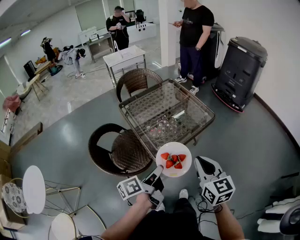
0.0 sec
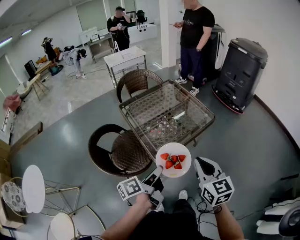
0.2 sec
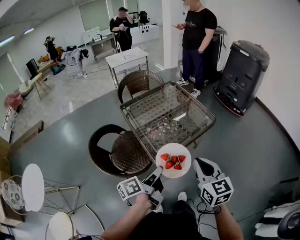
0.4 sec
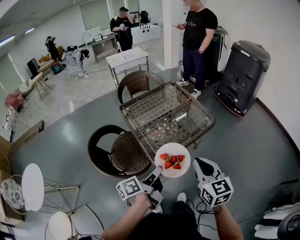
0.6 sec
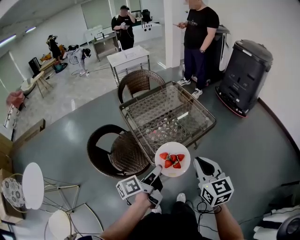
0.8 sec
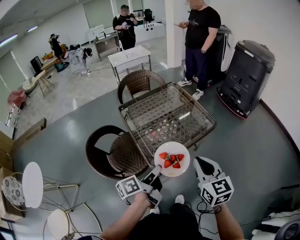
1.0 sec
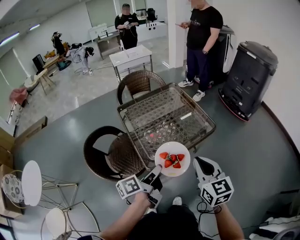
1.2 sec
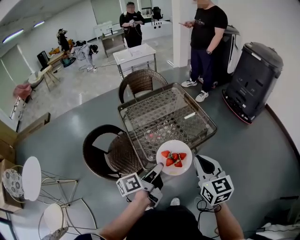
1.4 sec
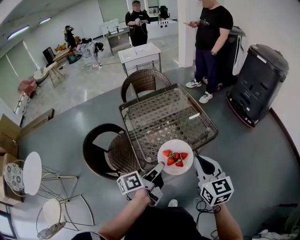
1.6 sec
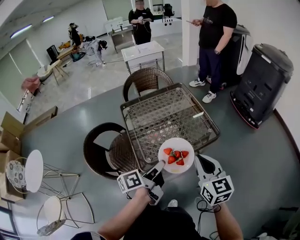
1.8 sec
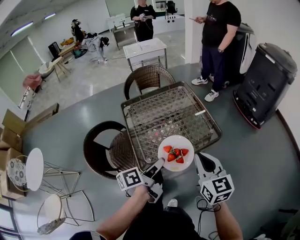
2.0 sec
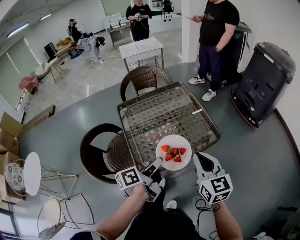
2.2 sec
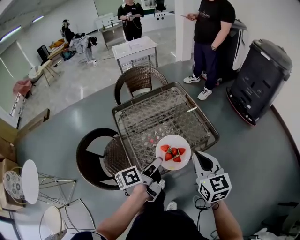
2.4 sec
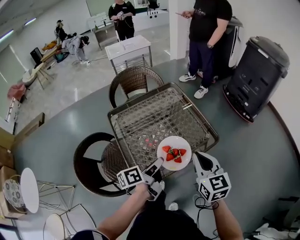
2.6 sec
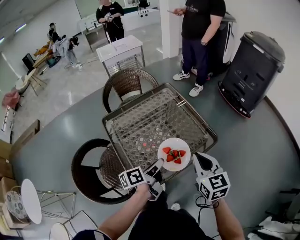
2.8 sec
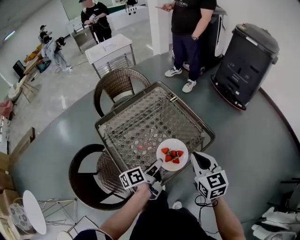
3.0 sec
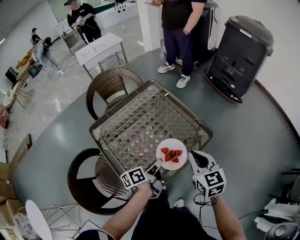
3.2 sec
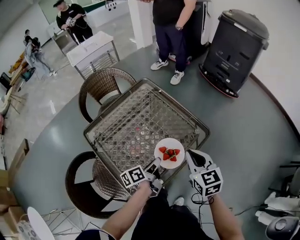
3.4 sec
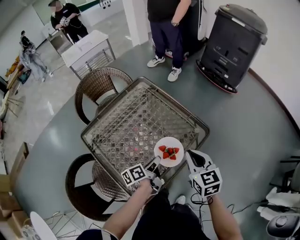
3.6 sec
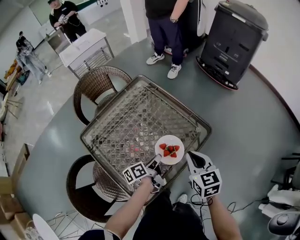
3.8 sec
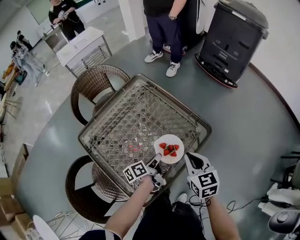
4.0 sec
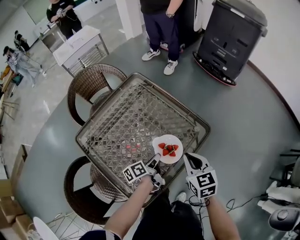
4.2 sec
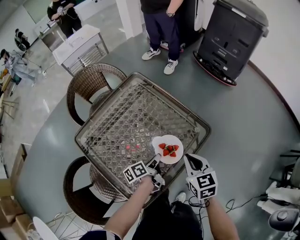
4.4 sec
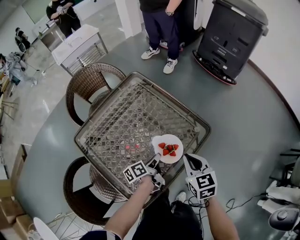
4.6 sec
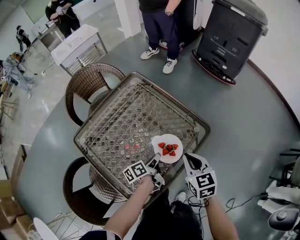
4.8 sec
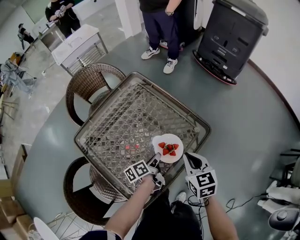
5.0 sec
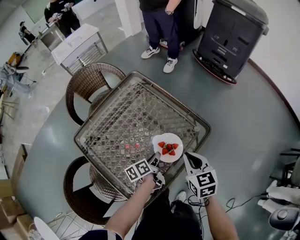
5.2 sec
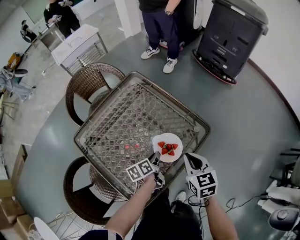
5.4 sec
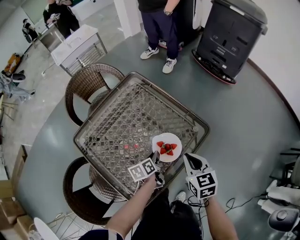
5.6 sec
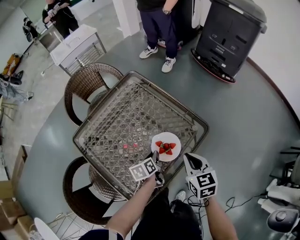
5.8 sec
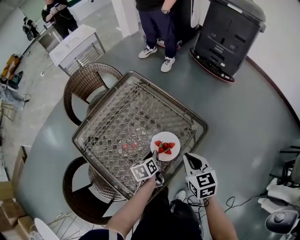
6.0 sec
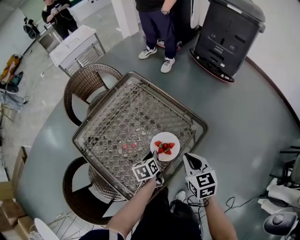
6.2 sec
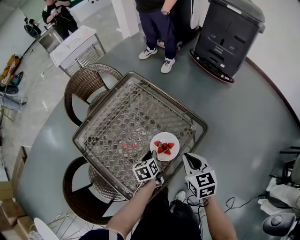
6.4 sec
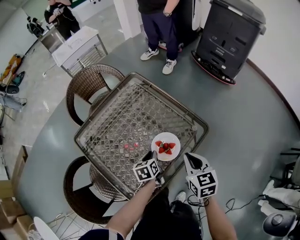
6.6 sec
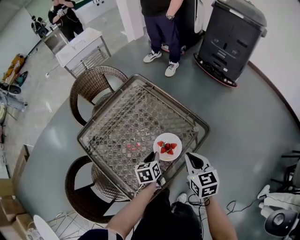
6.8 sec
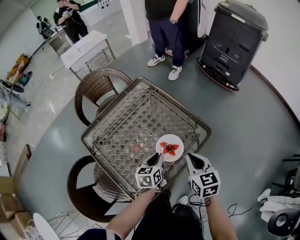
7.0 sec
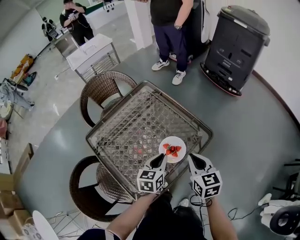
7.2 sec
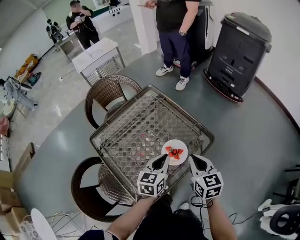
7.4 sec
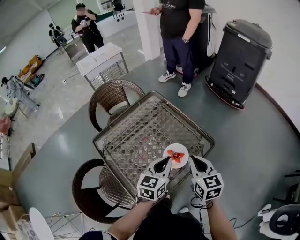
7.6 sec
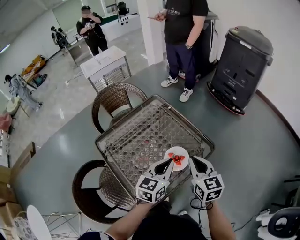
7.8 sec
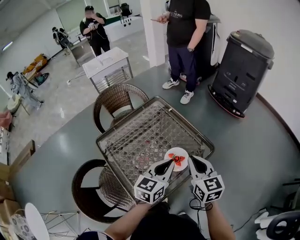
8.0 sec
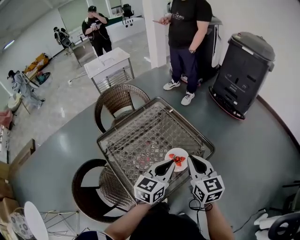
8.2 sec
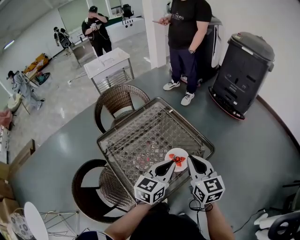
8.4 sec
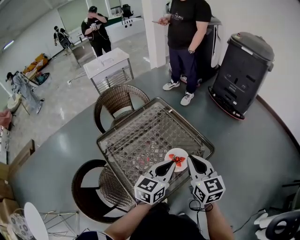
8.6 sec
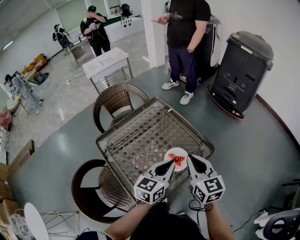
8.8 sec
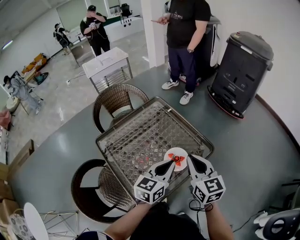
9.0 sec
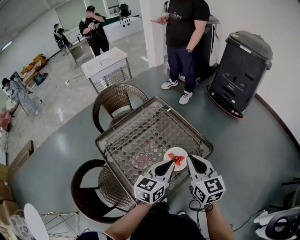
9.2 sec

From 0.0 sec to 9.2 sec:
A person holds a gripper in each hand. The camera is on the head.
From 0.0 sec to 1.6 sec: The two grippers go roughly 15 cm forward and to the right.
From 1.6 sec to 3.0 sec: Both grippers travel together forward and downward, some 20 cm.
From 3.0 sec to 4.6 sec: The right gripper shifts some 10 cm downward, while the left gripper shifts about 15 cm downward and forward.
From 4.6 sec to 6.2 sec: The left gripper swivels some 40 degrees.
From 6.2 sec to 7.6 sec: The right gripper travels upward by about 10 cm. The left gripper goes approximately 20 cm upward, and rotates roughly 40 degrees.
From 7.6 sec to 9.2 sec: The left gripper changes place by some 5 cm; the right gripper goes some 5 cm upward.

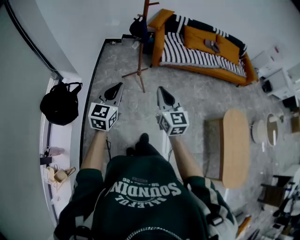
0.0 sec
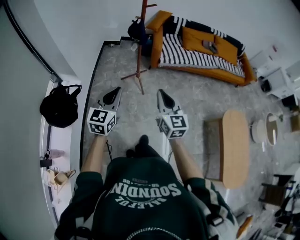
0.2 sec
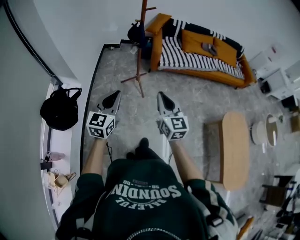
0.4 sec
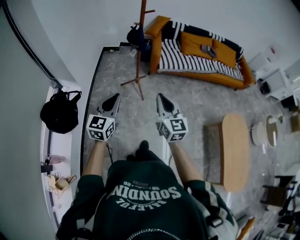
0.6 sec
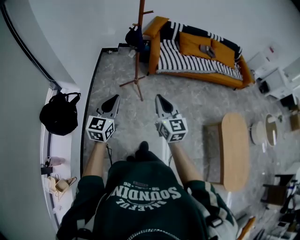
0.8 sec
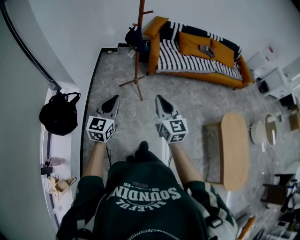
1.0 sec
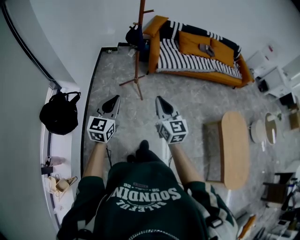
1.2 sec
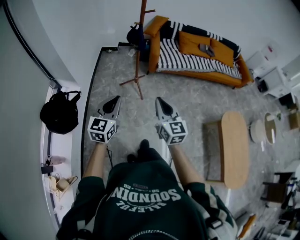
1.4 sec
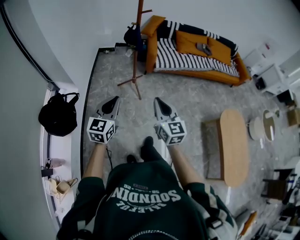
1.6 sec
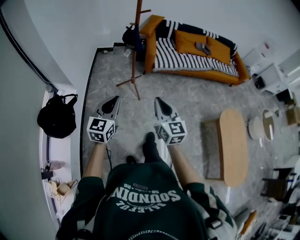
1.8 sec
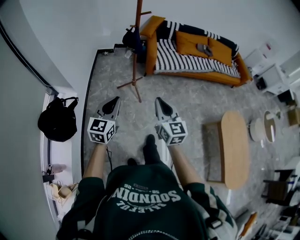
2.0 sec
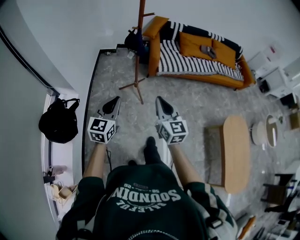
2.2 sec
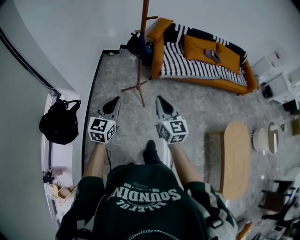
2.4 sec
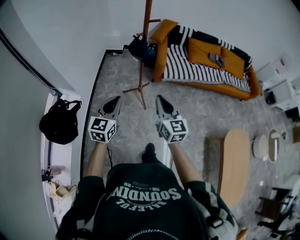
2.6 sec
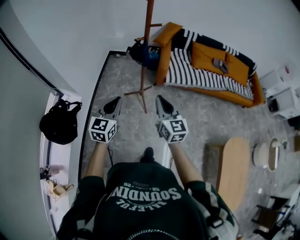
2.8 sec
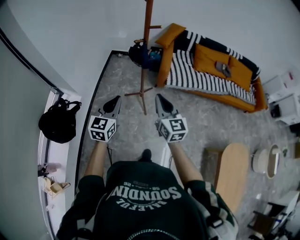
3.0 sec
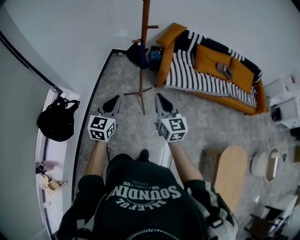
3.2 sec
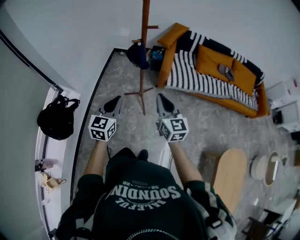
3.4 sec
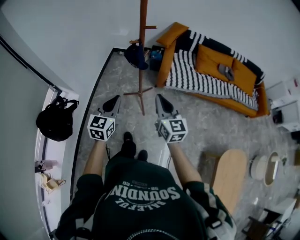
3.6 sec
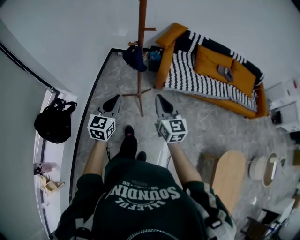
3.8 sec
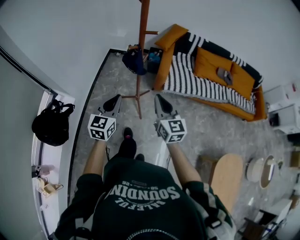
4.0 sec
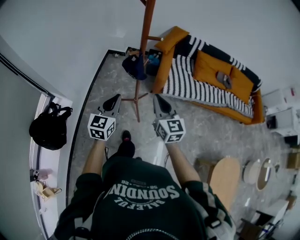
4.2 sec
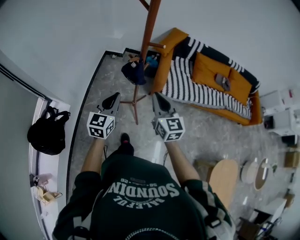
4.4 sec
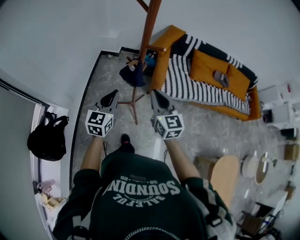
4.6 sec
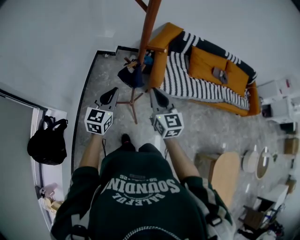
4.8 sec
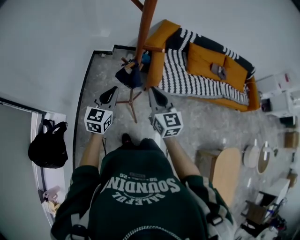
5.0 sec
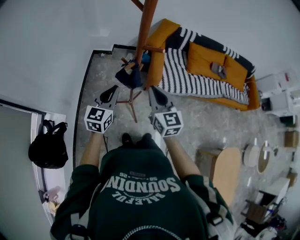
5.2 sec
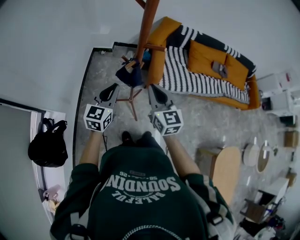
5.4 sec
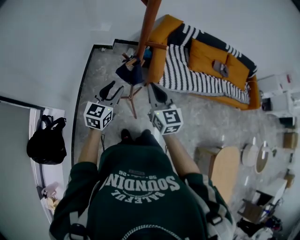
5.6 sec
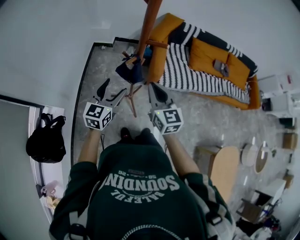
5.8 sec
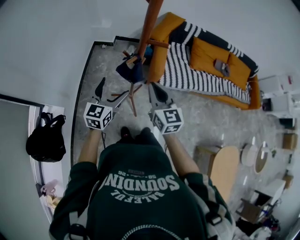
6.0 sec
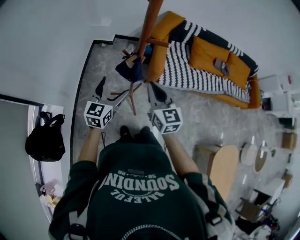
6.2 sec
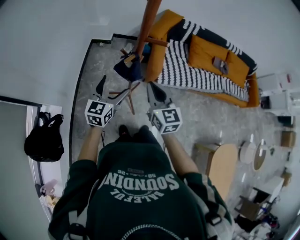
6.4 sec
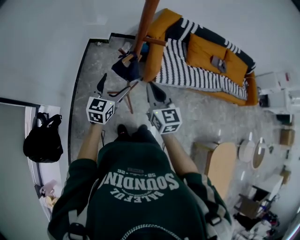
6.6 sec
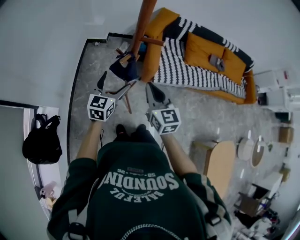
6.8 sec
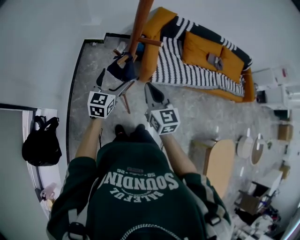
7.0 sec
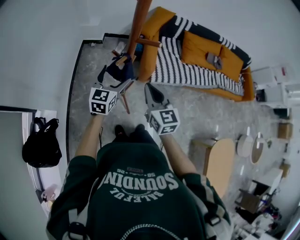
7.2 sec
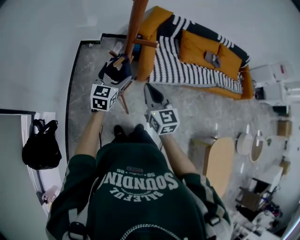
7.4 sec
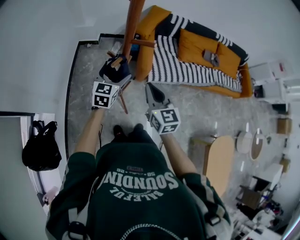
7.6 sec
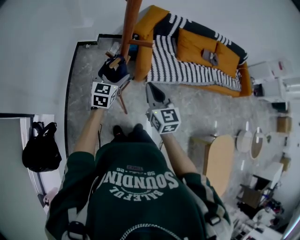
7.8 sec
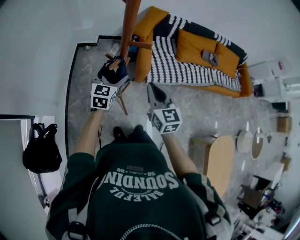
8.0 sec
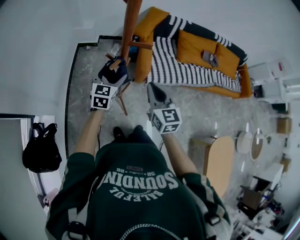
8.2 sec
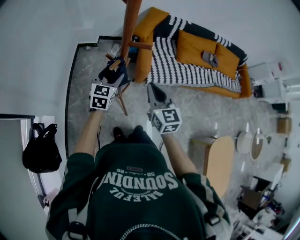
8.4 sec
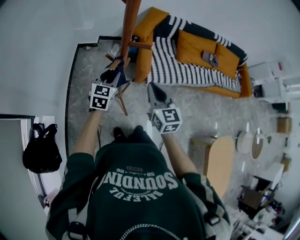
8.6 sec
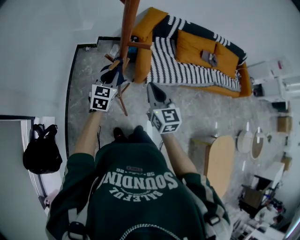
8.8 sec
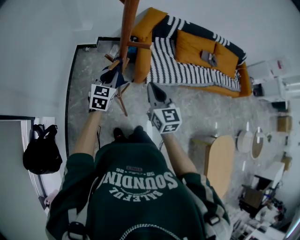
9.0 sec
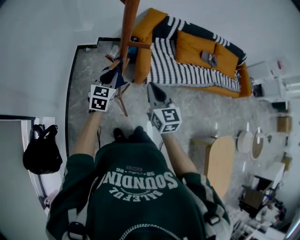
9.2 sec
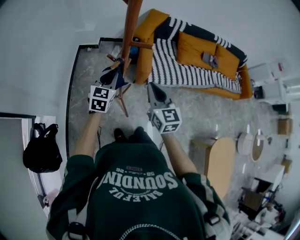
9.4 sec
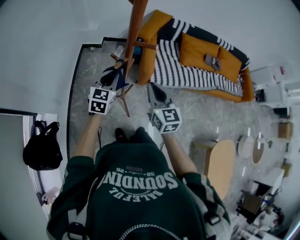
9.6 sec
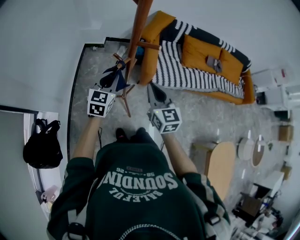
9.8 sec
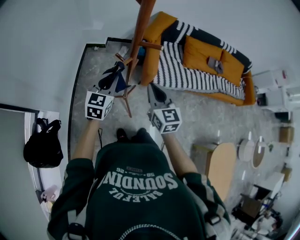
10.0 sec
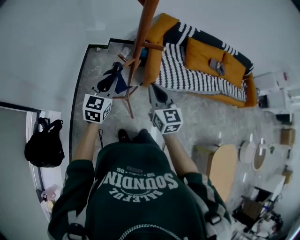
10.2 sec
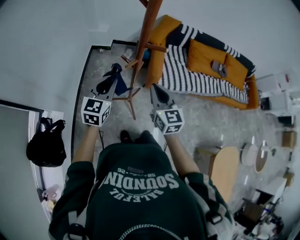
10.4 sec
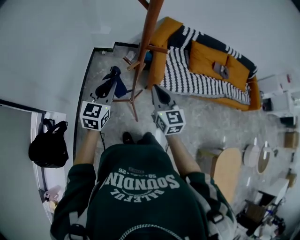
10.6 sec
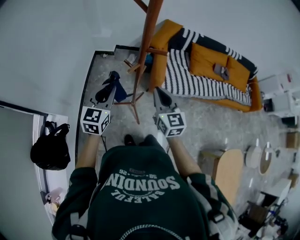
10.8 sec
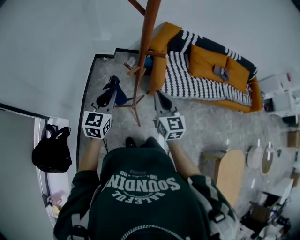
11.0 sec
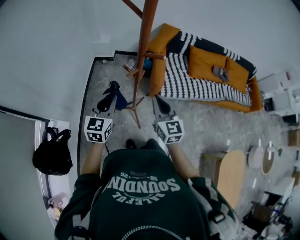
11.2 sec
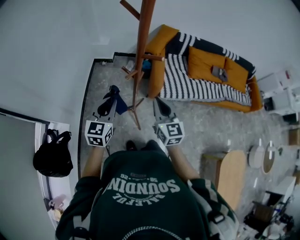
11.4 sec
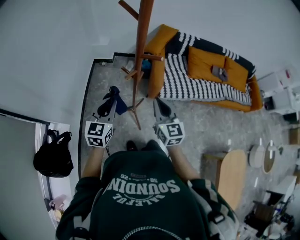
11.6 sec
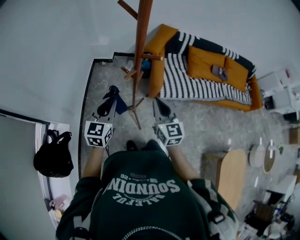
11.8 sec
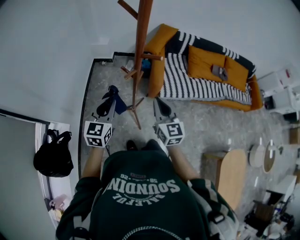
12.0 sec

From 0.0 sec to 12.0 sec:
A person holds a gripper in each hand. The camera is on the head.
From 0.0 sec to 1.6 sec: The grippers stay close to where they were, moving slightly.
From 1.6 sec to 3.0 sec: The two grippers go some 25 cm forward.
From 3.0 sec to 4.4 sec: Both grippers move forward, about 20 cm.
From 4.4 sec to 6.0 sec: Both grippers move forward, some 10 cm. The left gripper opens up.
From 6.0 sec to 7.6 sec: The left gripper heads forward and to the right, covering roughly 10 cm.
From 7.6 sec to 9.0 sec: The left gripper closes.
From 9.0 sec to 10.4 sec: The left gripper shifts about 10 cm upward, backward and to the left.
From 10.4 sec to 12.0 sec: There are only small adjustments of the grippers.

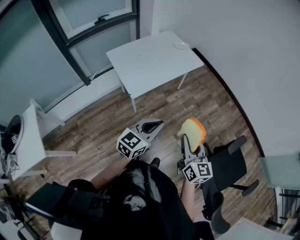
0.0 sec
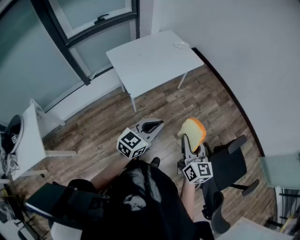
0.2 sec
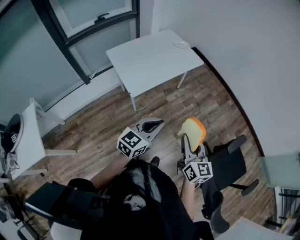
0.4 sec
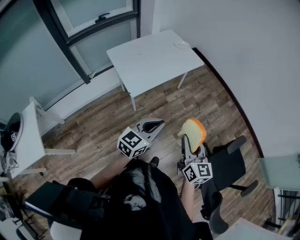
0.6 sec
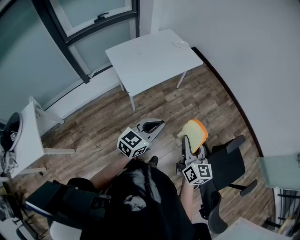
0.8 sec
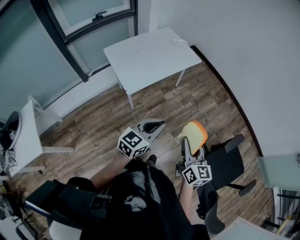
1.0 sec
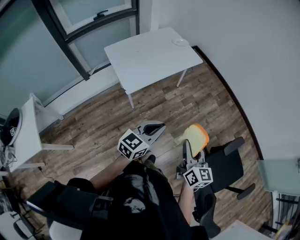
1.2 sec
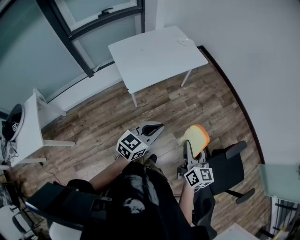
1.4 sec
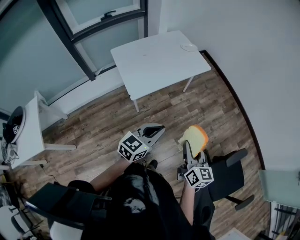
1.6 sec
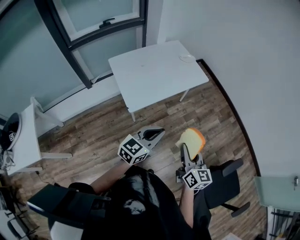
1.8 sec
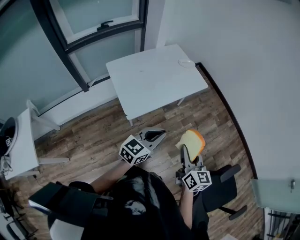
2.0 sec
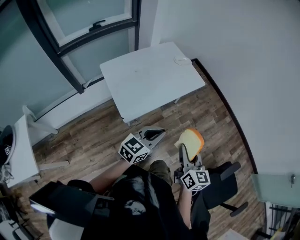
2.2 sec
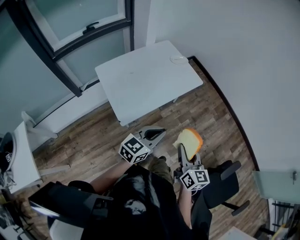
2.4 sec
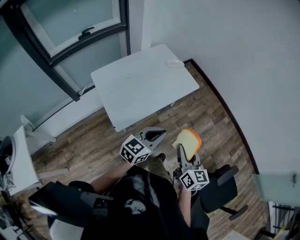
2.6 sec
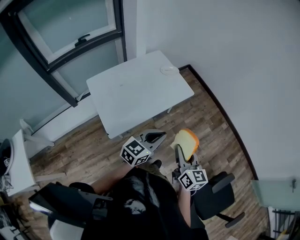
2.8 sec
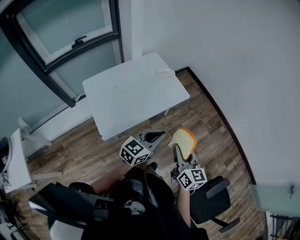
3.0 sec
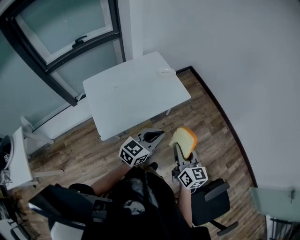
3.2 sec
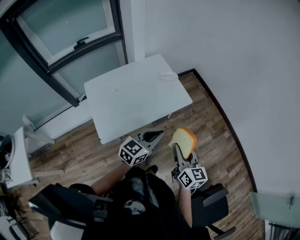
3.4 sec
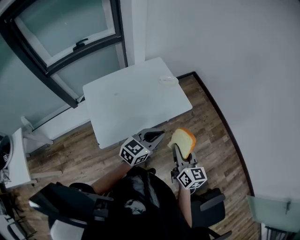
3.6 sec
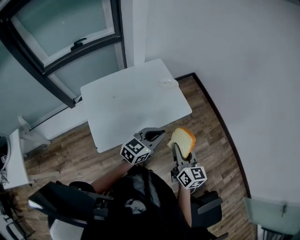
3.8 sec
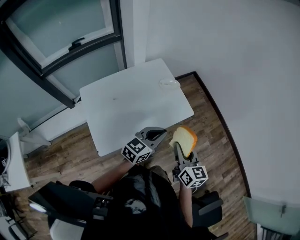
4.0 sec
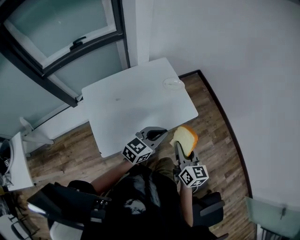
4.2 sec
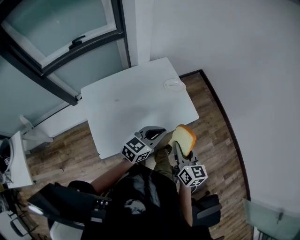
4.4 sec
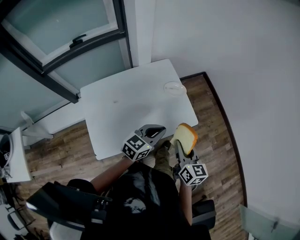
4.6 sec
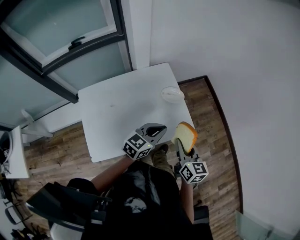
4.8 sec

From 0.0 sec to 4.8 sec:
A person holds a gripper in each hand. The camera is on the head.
From 0.0 sec to 1.6 sec: The left gripper is displaced forward by roughly 5 cm; the right gripper shifts approximately 10 cm forward and downward.
From 1.6 sec to 3.2 sec: The grippers both shift forward by some 30 cm.
From 3.2 sec to 4.8 sec: The two grippers go some 30 cm forward.
